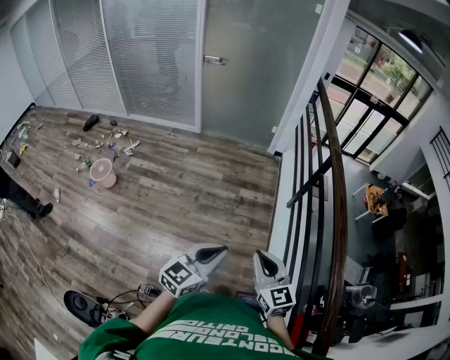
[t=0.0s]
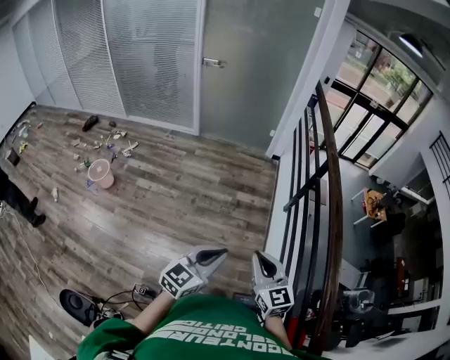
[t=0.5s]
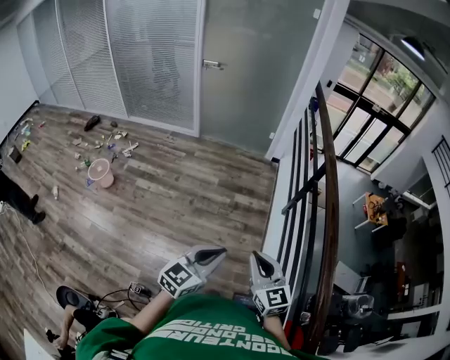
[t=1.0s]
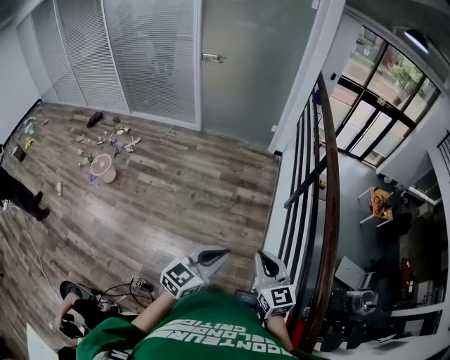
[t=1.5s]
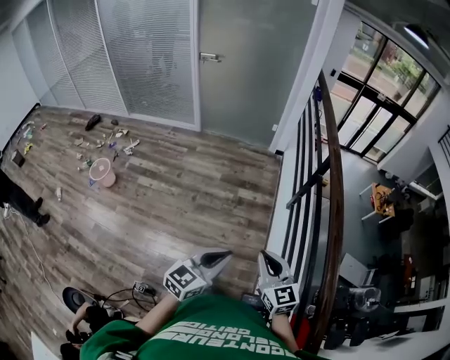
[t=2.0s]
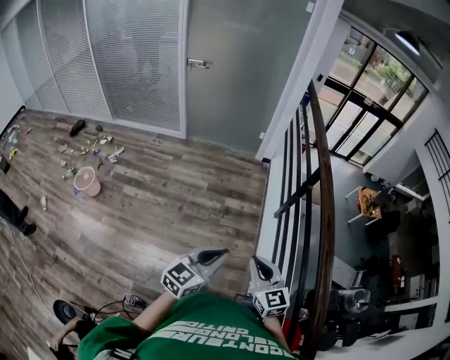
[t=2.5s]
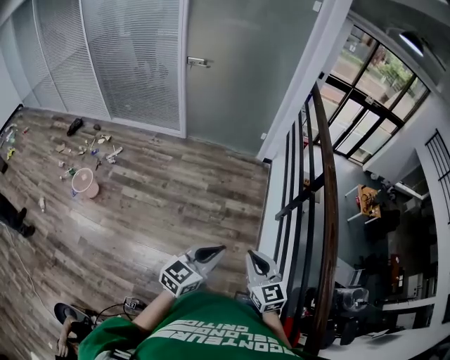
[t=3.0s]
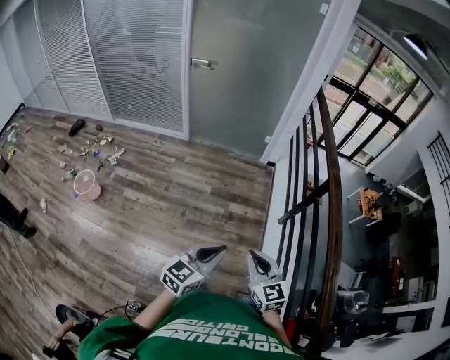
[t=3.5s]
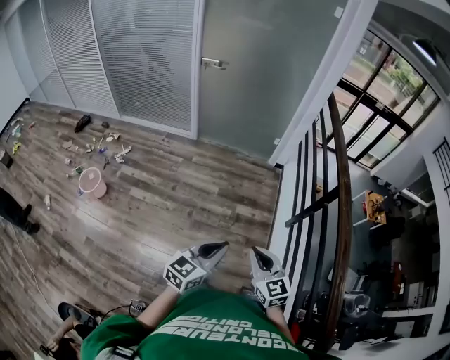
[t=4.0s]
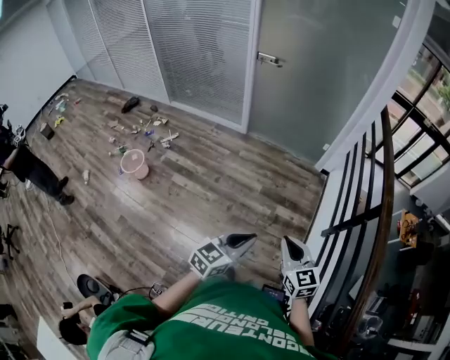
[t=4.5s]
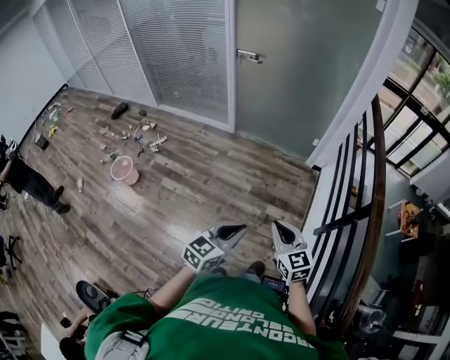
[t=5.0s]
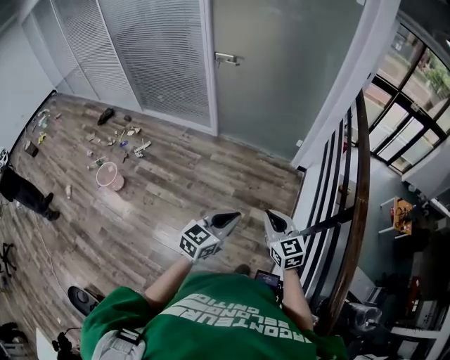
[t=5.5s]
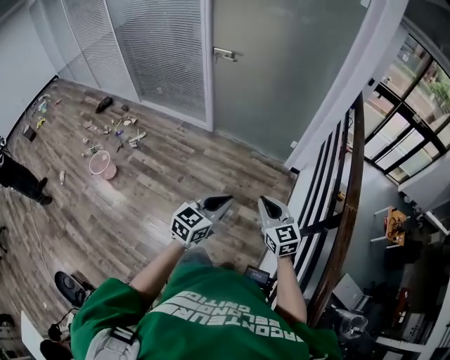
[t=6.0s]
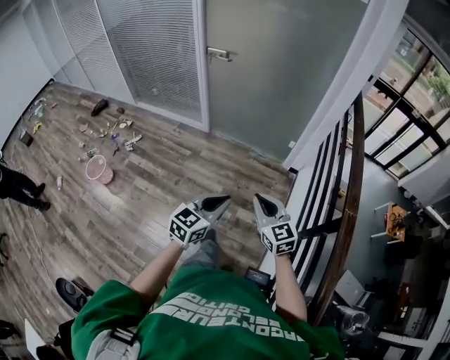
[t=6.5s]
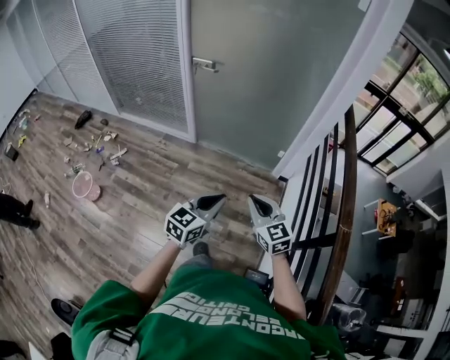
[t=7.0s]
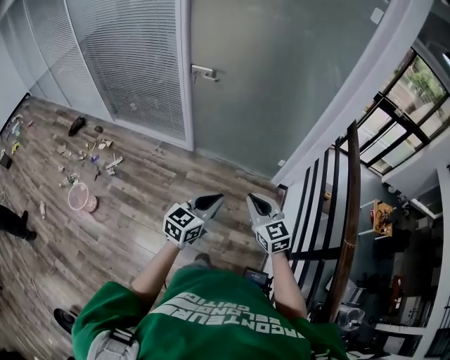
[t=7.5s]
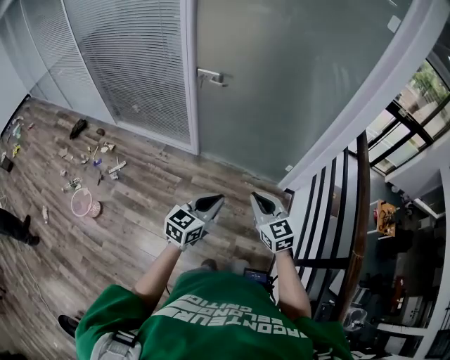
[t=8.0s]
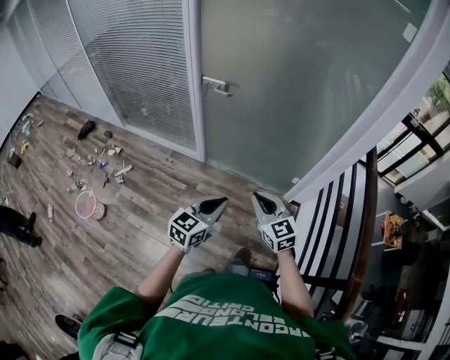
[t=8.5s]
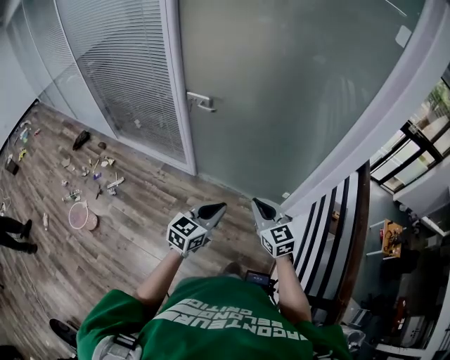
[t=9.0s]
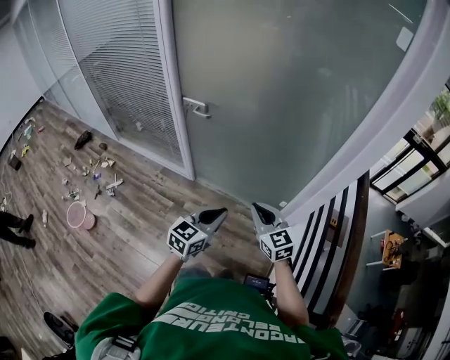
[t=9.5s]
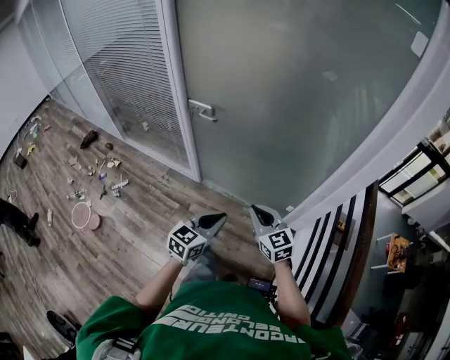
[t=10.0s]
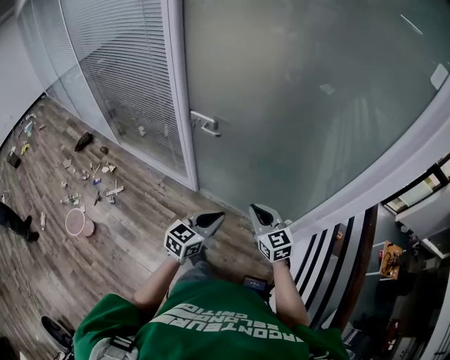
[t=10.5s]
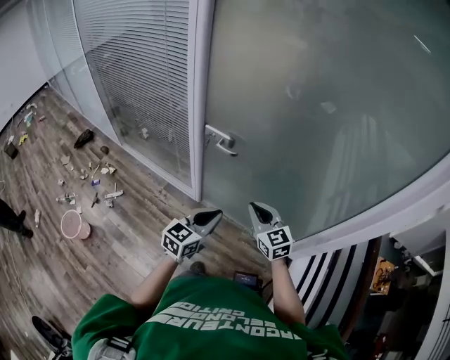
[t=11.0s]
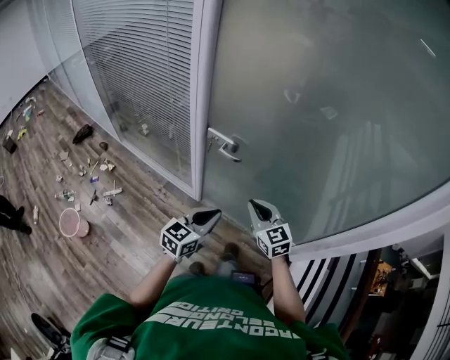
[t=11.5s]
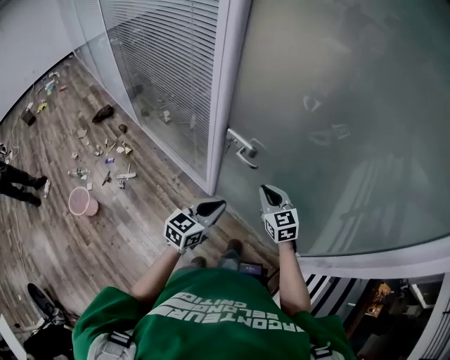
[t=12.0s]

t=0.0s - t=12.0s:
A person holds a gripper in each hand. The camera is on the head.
t=0.0s - t=2.0s: The left gripper is displaced to the right by roughly 10 cm; the right gripper heads to the right and forward, covering about 10 cm.
t=2.0s - t=4.0s: Both grippers move forward and to the left, roughly 20 cm.
t=4.0s - t=6.0s: The two grippers go about 30 cm forward.
t=6.0s - t=8.0s: The two grippers go some 30 cm forward and to the left.
t=8.0s - t=10.0s: The left gripper is displaced forward and to the right by approximately 20 cm. Meanwhile the right gripper travels forward by approximately 20 cm.
t=10.0s - t=12.0s: The two grippers go some 35 cm forward and to the left.

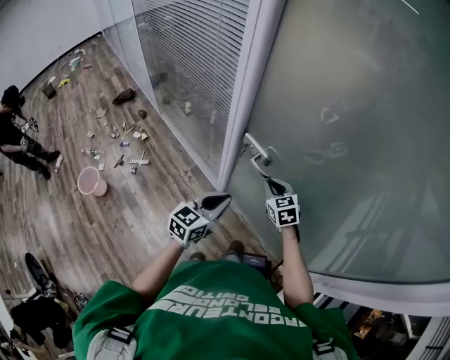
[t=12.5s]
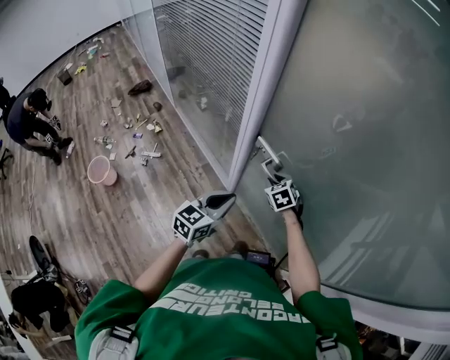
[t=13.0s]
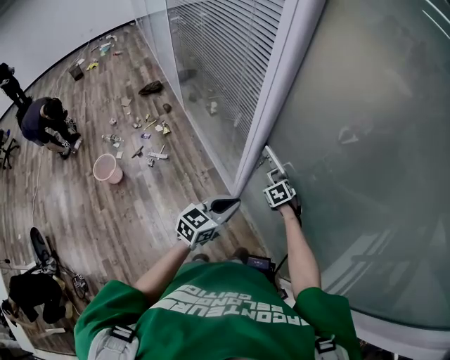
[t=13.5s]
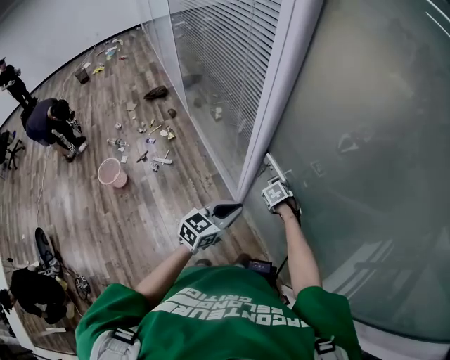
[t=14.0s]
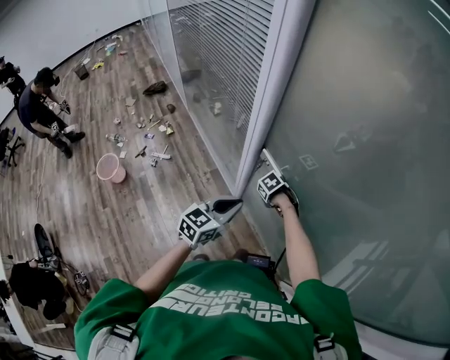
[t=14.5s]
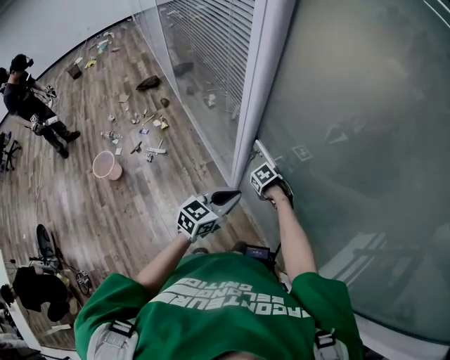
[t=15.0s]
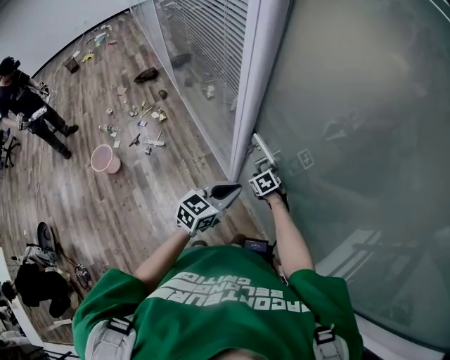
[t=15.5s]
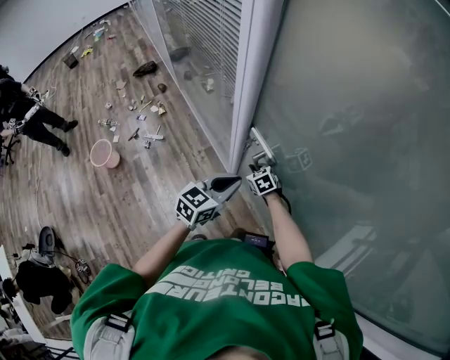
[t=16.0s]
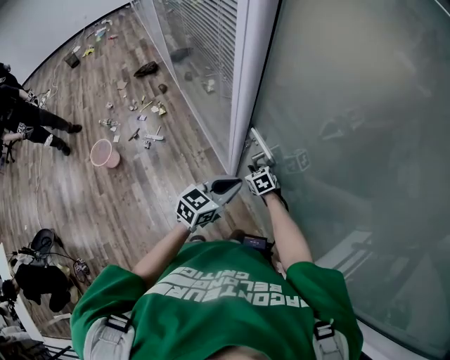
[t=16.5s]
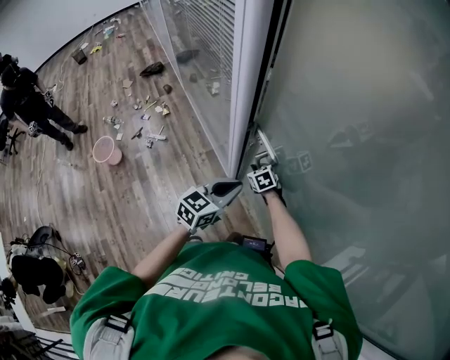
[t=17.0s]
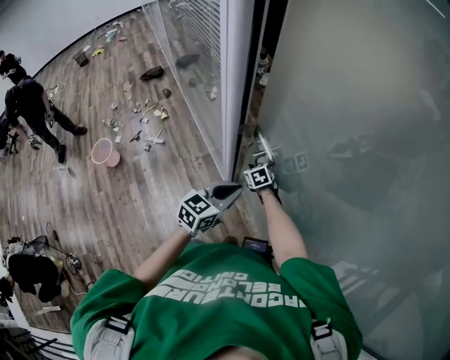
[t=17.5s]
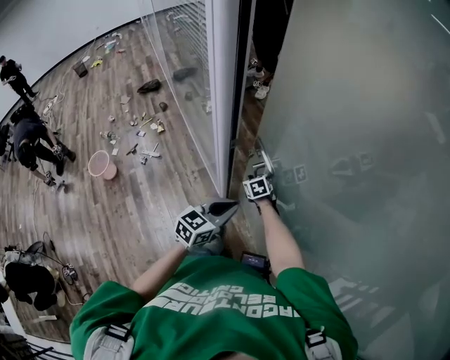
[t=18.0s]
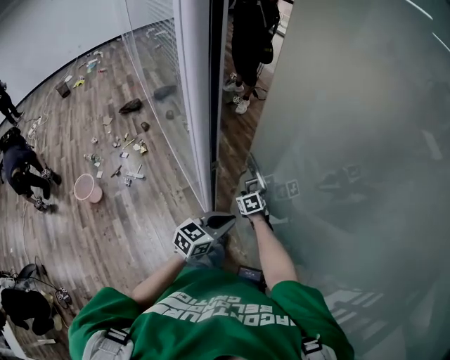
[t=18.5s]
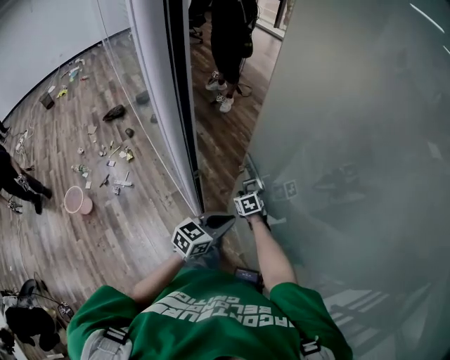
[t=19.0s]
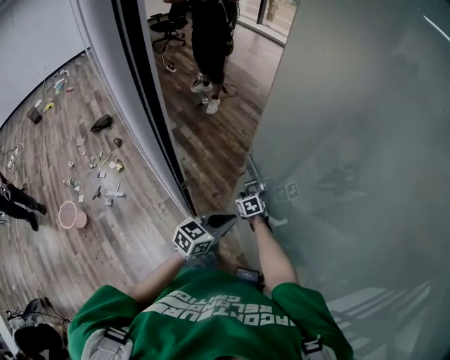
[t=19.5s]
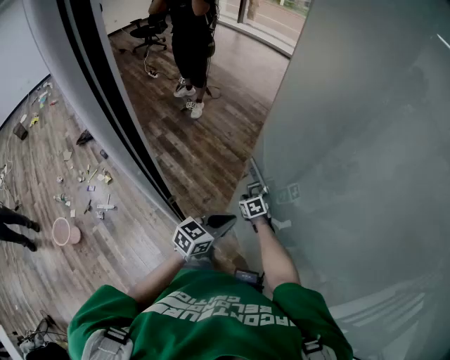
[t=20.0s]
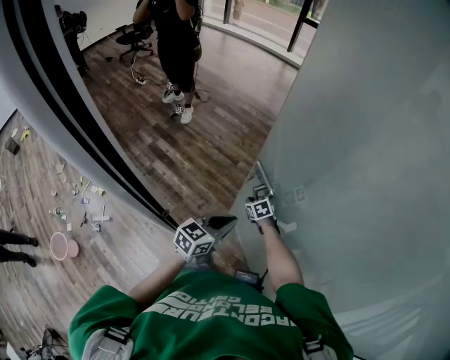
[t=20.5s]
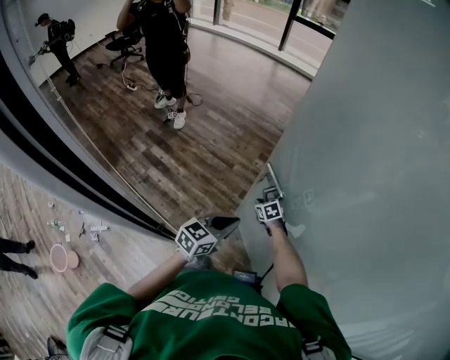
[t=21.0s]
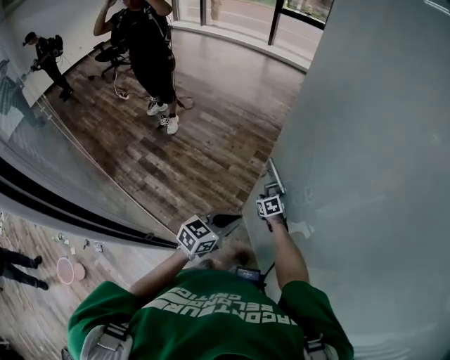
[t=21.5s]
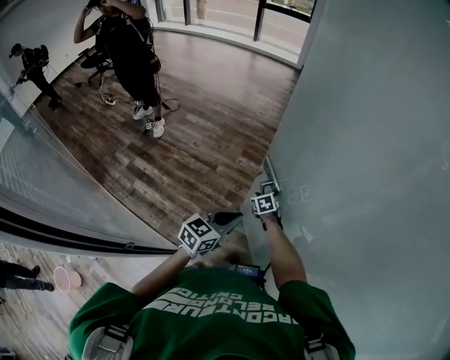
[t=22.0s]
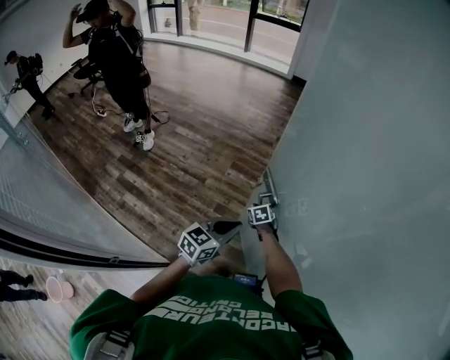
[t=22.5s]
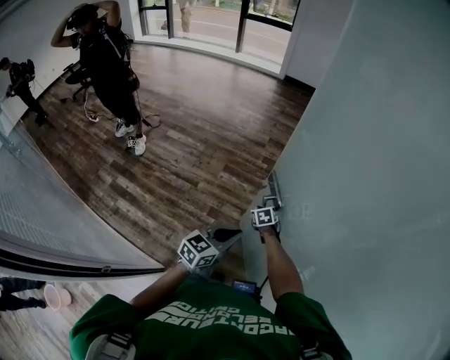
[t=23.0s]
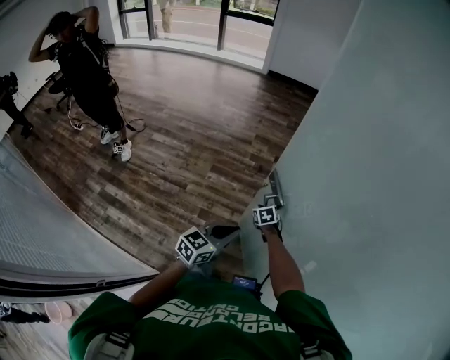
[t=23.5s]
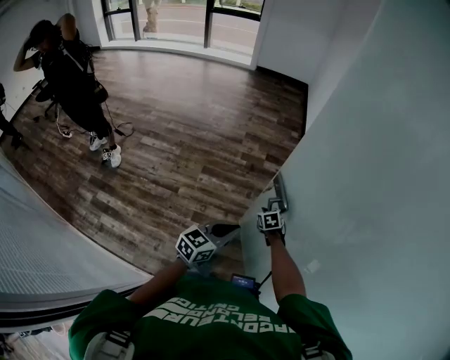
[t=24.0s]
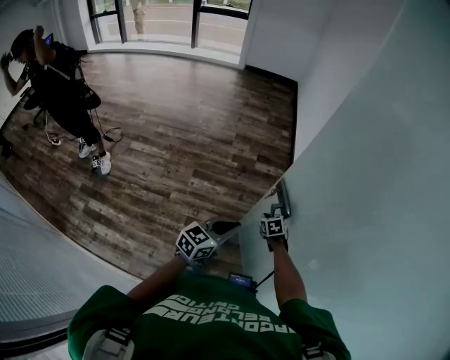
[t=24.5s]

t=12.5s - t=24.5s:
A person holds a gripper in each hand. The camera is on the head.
t=12.5s - t=14.5s: The right gripper moves downward, some 15 cm, and tilts its fingers approximately 50 degrees downward.
t=14.5s - t=16.5s: The right gripper ends up some 5 cm from where it was, and points its fingers approximately 30 degrees further upward; the left gripper changes place by approximately 5 cm.
t=16.5s - t=18.5s: The right gripper moves forward and to the right, about 15 cm. The left gripper goes approximately 10 cm to the right.
t=18.5s - t=20.5s: The left gripper moves forward and to the right, approximately 20 cm. The right gripper moves to the right and forward, approximately 25 cm.
t=20.5s - t=22.5s: The grippers both shift forward and to the right by some 25 cm.
t=22.5s - t=24.5s: The left gripper shifts about 15 cm forward. The right gripper goes about 25 cm to the right and forward.

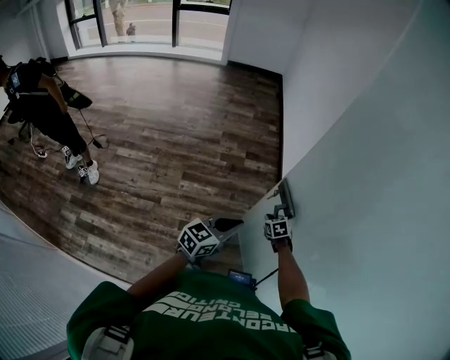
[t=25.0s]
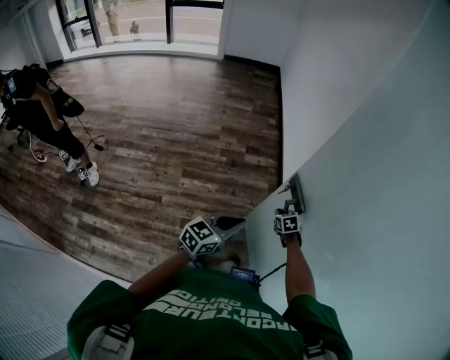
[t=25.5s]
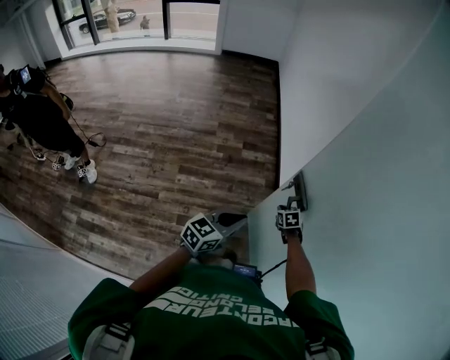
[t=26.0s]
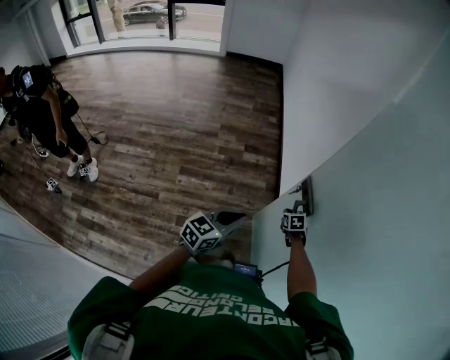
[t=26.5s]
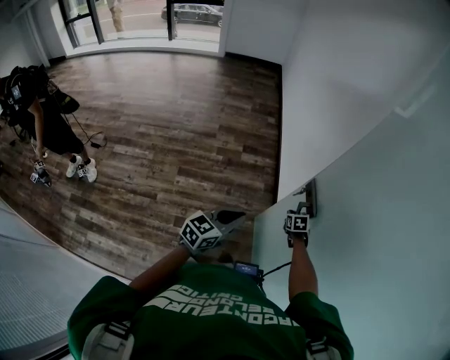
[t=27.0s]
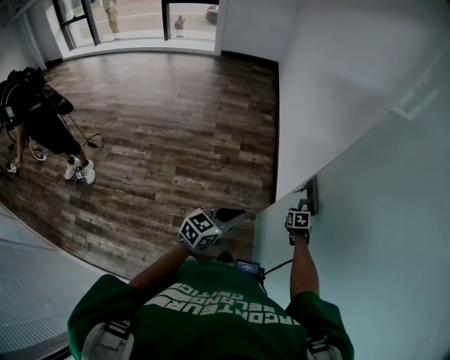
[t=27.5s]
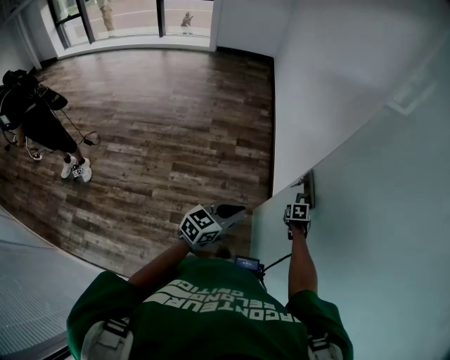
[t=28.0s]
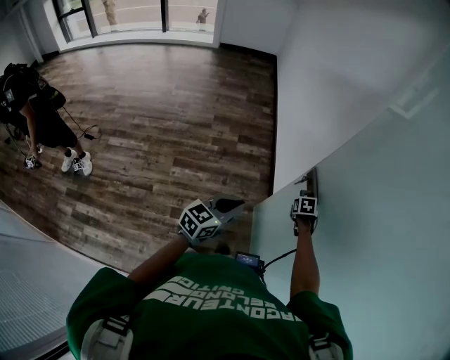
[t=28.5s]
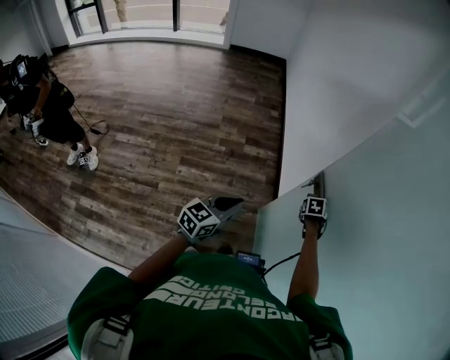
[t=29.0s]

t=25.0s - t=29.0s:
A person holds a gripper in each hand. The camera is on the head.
t=25.0s - t=27.0s: The left gripper is displaced forward by about 10 cm; the right gripper goes some 20 cm to the right and forward.
t=27.0s - t=29.0s: The right gripper is displaced upward by approximately 10 cm, and opens its fingers.
